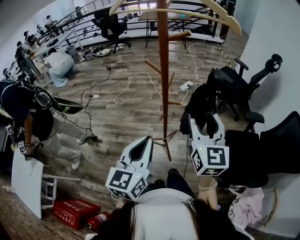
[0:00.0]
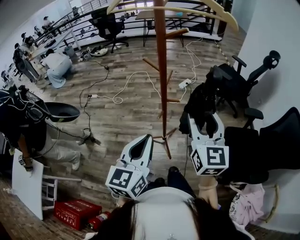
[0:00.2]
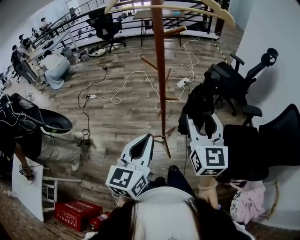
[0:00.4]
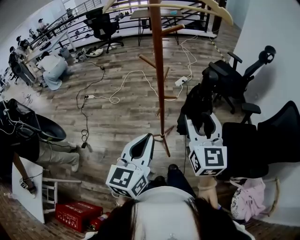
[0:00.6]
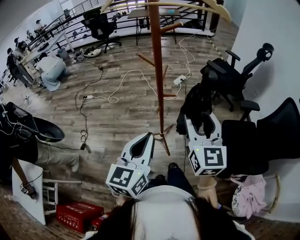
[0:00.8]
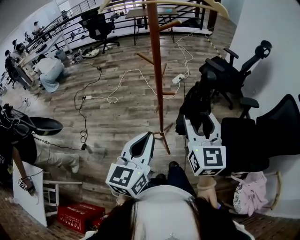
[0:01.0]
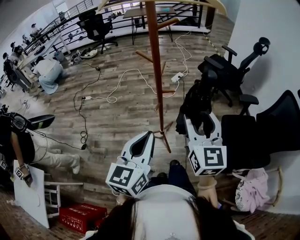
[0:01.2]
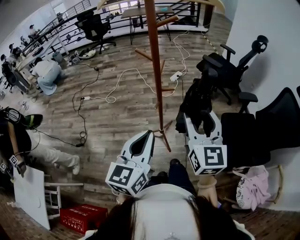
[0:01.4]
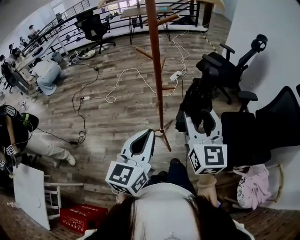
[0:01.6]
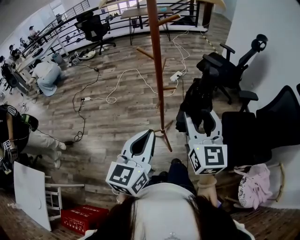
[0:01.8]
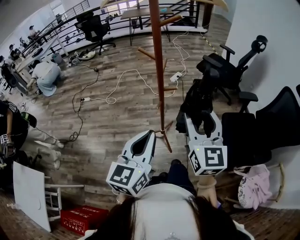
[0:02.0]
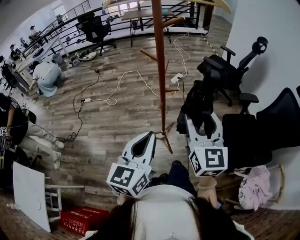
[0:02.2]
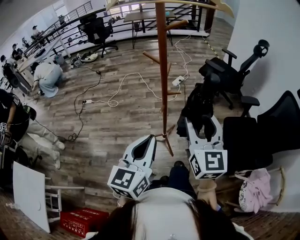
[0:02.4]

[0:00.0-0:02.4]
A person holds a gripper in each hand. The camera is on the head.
0:00.0 to 0:01.2: The right gripper goes roughly 5 cm backward.
0:01.2 to 0:02.4: The grippers move only a little.

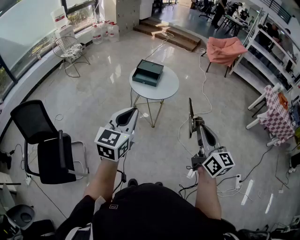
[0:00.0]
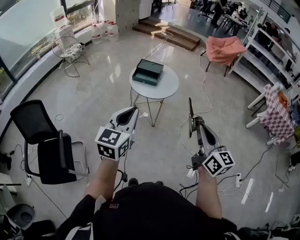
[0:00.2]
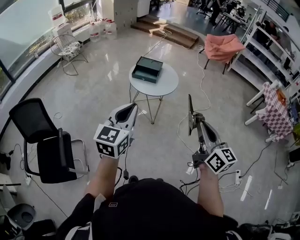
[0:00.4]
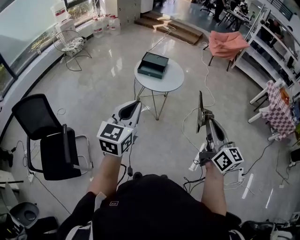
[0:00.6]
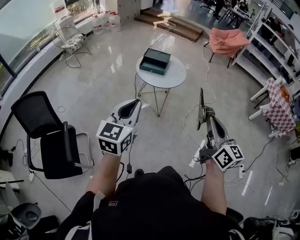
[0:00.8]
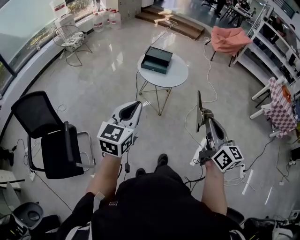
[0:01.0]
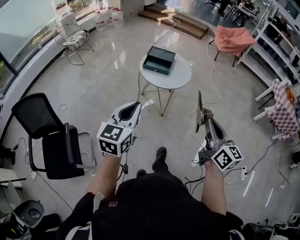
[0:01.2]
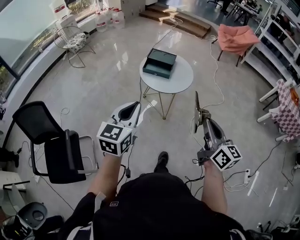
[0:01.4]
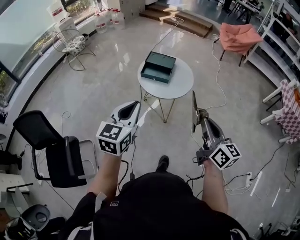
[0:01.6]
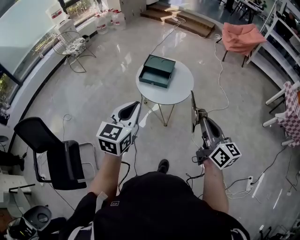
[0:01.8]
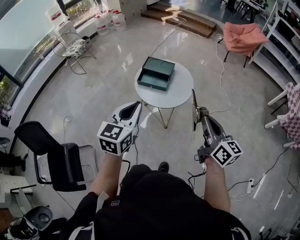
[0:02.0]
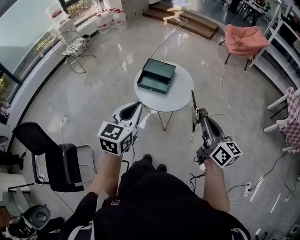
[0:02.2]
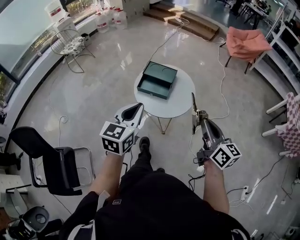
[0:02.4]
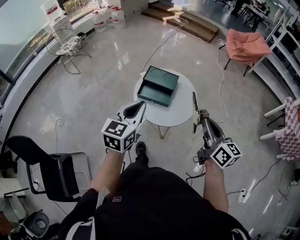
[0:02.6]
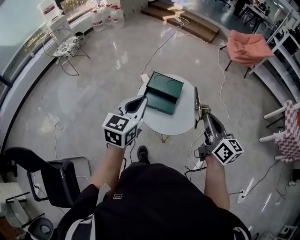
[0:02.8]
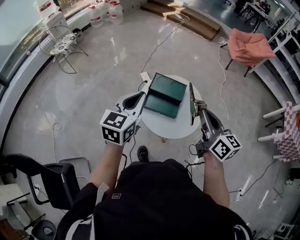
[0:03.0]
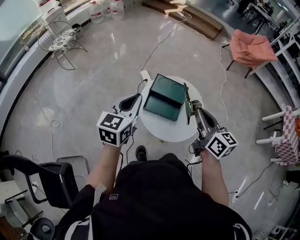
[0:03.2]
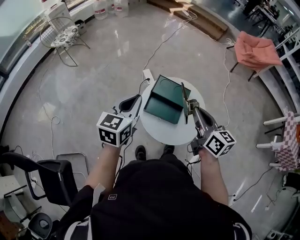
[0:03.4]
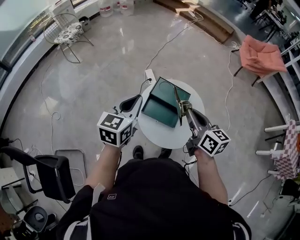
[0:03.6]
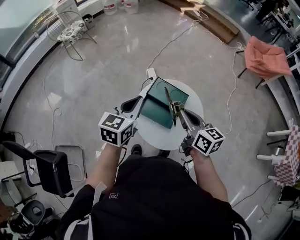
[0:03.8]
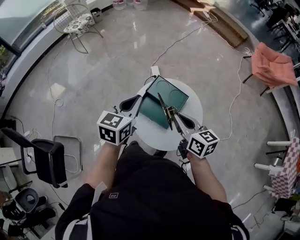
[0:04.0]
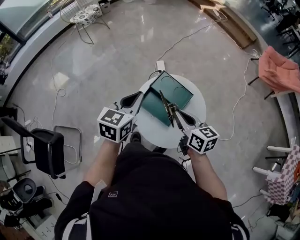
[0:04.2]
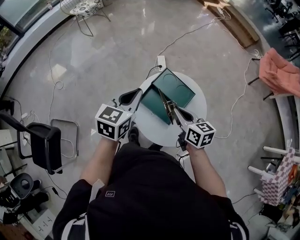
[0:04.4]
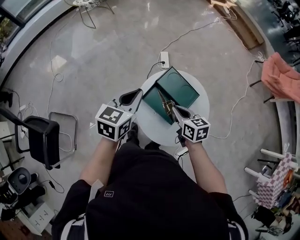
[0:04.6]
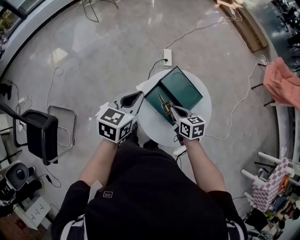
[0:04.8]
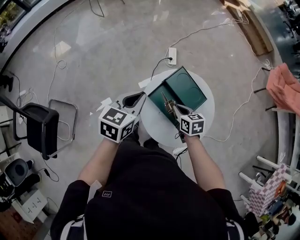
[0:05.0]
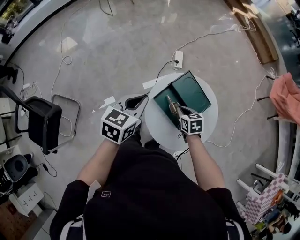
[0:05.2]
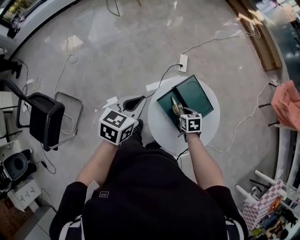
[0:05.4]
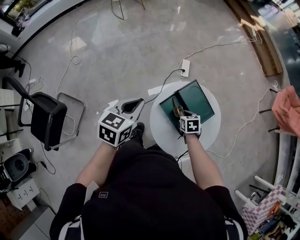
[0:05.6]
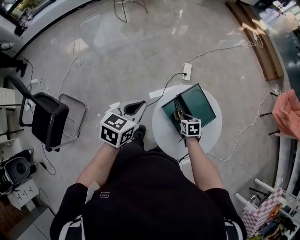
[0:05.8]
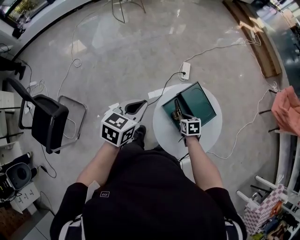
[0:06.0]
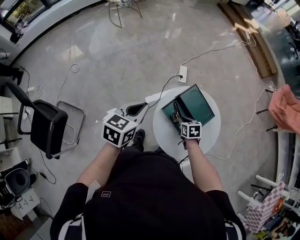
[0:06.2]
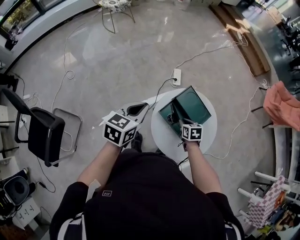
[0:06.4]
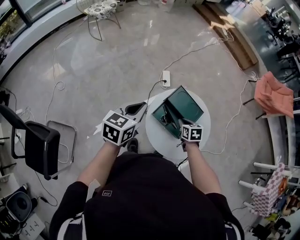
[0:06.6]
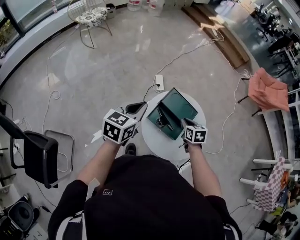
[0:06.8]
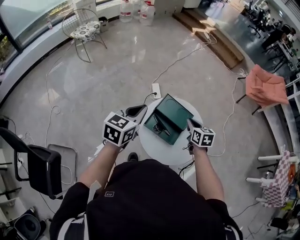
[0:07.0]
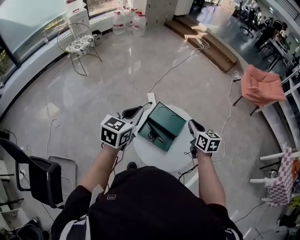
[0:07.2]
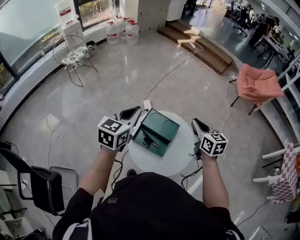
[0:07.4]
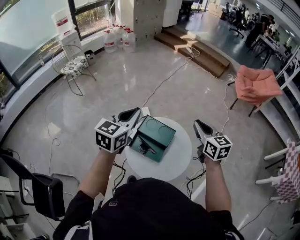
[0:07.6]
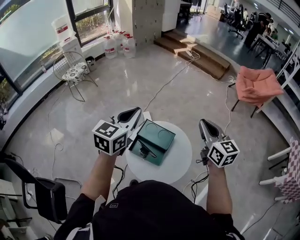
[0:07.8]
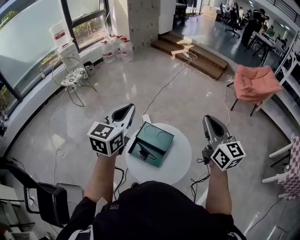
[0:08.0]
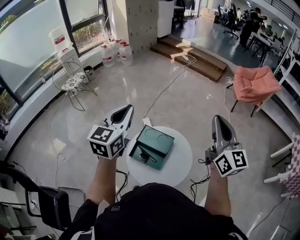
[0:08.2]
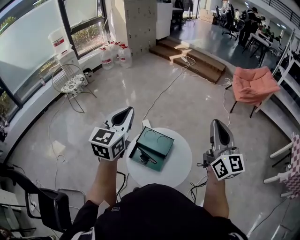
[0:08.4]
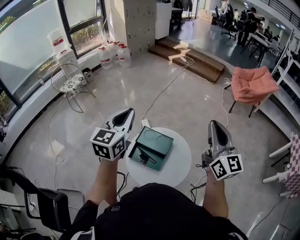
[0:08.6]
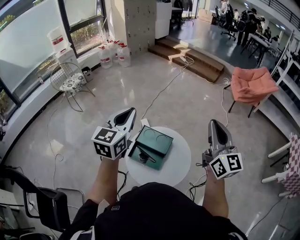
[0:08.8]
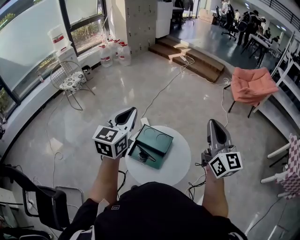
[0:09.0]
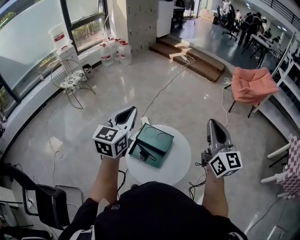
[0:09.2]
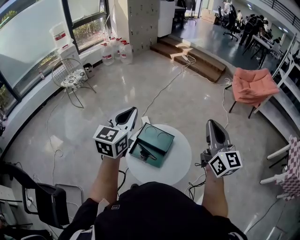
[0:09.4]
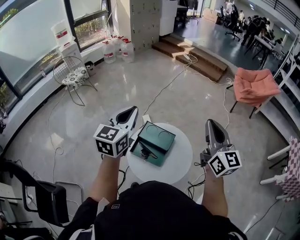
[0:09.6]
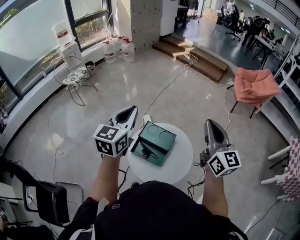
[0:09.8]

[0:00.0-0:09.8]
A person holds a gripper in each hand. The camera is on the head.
0:00.0 to 0:01.4: The left gripper shifts roughly 10 cm to the left, forward and downward. The right gripper is displaced forward, to the left and downward by roughly 10 cm.
0:01.4 to 0:02.8: Both grippers travel together forward, some 35 cm.
0:02.8 to 0:04.2: The left gripper travels forward and downward by roughly 15 cm, and turns by approximately 20 degrees, while the right gripper travels forward, downward and to the left by about 25 cm, and rotates approximately 40 degrees.
0:04.2 to 0:05.6: The right gripper goes roughly 25 cm downward, and points its fingers approximately 40 degrees further downward, while the left gripper moves to the left and downward, approximately 15 cm.
0:05.6 to 0:07.0: The right gripper shifts approximately 20 cm upward and to the right, and swivels roughly 30 degrees. Meanwhile the left gripper goes approximately 10 cm upward and to the right, and swivels about 20 degrees.
0:07.0 to 0:08.4: The right gripper travels upward and to the right by some 40 cm, and tilts its fingers about 50 degrees upward. Meanwhile the left gripper is displaced upward and to the right by some 20 cm, and turns by about 20 degrees.
0:08.4 to 0:09.8: The grippers stay close to where they were, moving slightly.

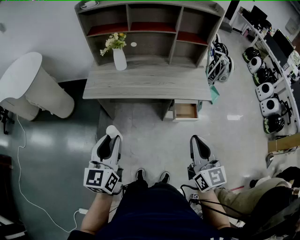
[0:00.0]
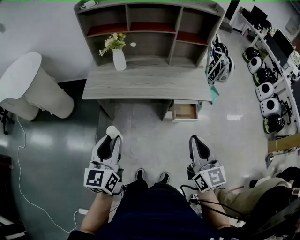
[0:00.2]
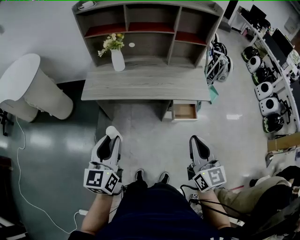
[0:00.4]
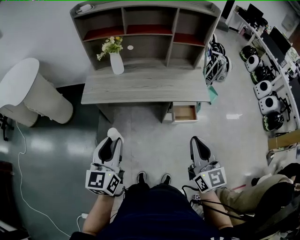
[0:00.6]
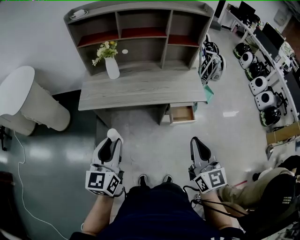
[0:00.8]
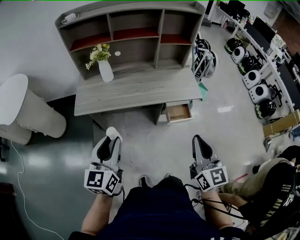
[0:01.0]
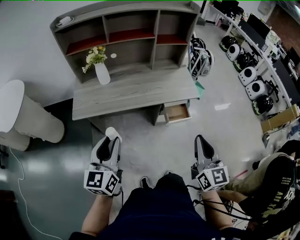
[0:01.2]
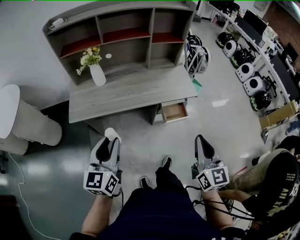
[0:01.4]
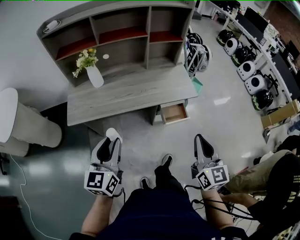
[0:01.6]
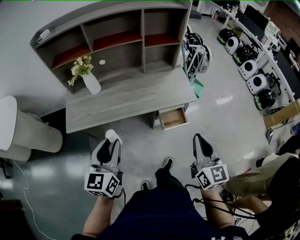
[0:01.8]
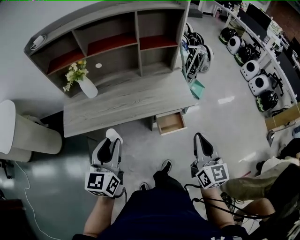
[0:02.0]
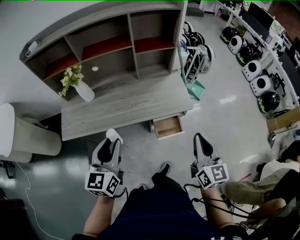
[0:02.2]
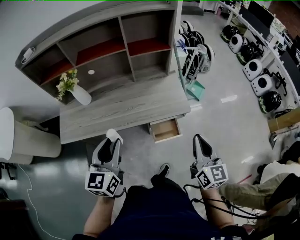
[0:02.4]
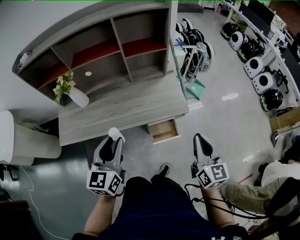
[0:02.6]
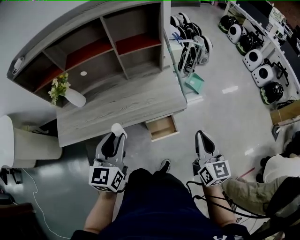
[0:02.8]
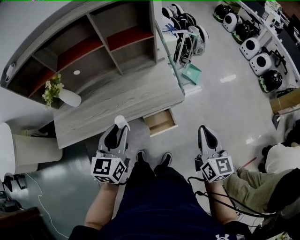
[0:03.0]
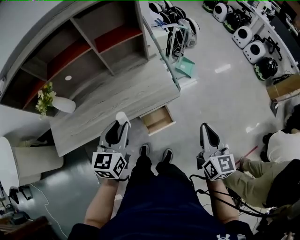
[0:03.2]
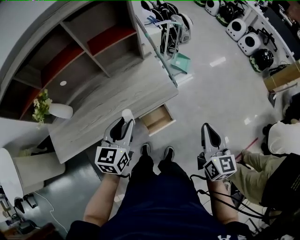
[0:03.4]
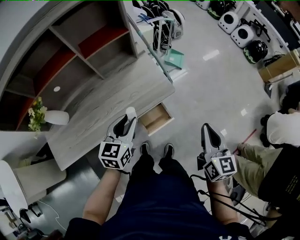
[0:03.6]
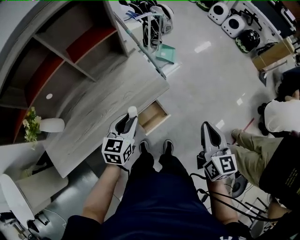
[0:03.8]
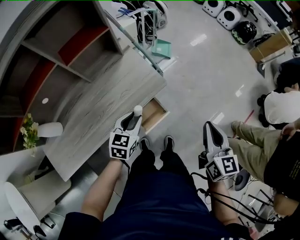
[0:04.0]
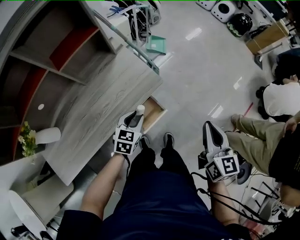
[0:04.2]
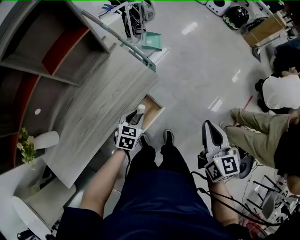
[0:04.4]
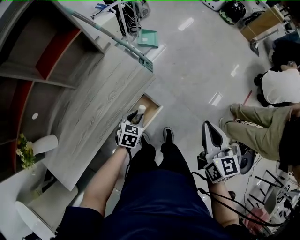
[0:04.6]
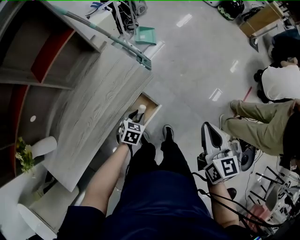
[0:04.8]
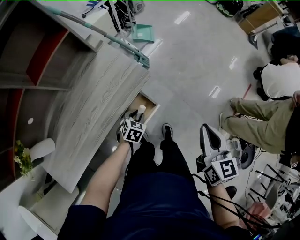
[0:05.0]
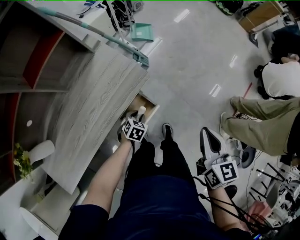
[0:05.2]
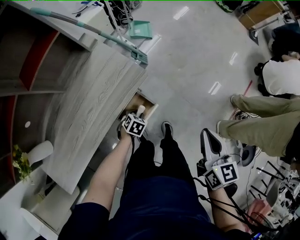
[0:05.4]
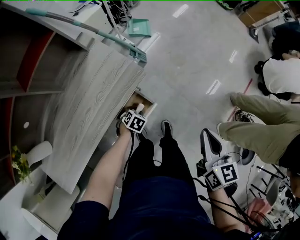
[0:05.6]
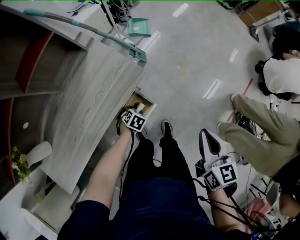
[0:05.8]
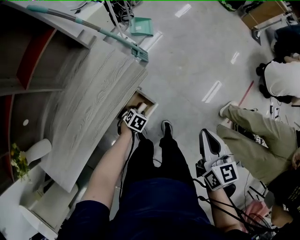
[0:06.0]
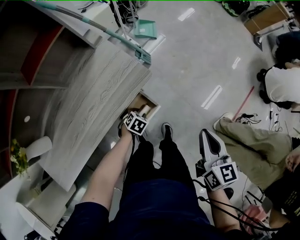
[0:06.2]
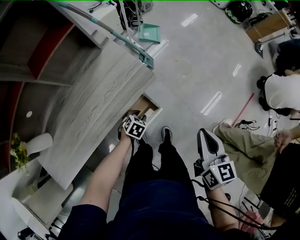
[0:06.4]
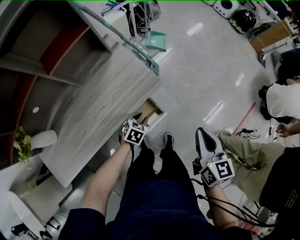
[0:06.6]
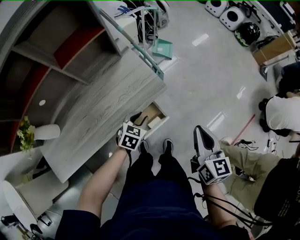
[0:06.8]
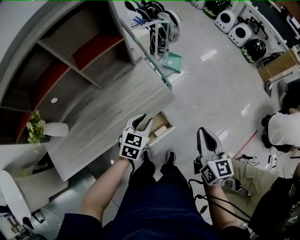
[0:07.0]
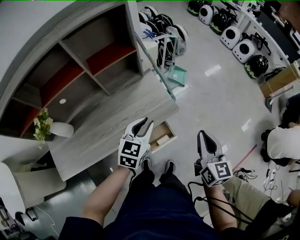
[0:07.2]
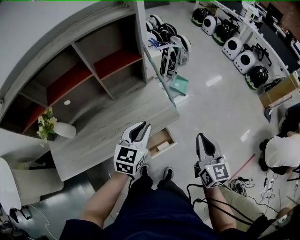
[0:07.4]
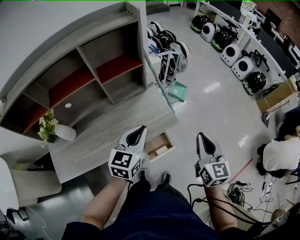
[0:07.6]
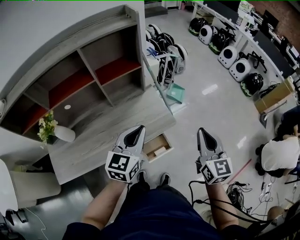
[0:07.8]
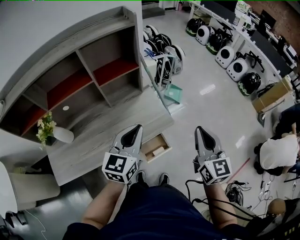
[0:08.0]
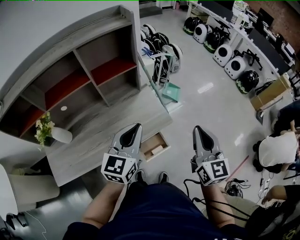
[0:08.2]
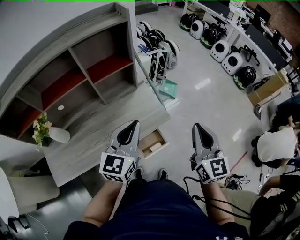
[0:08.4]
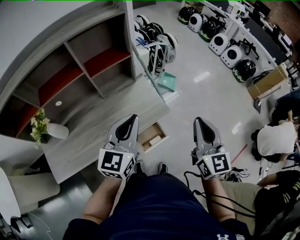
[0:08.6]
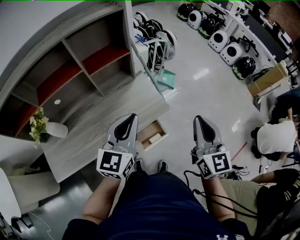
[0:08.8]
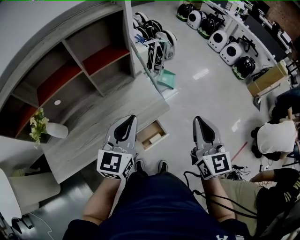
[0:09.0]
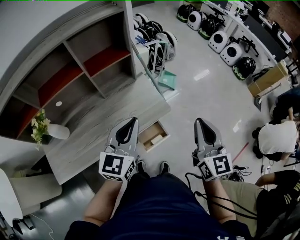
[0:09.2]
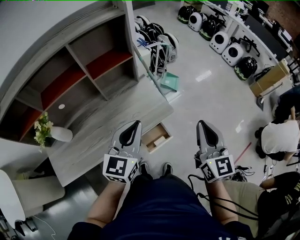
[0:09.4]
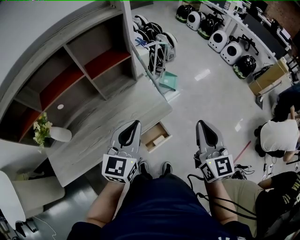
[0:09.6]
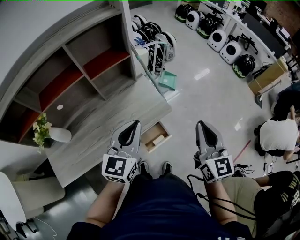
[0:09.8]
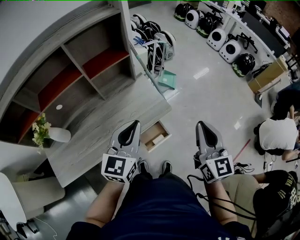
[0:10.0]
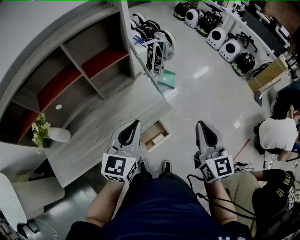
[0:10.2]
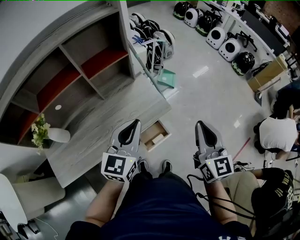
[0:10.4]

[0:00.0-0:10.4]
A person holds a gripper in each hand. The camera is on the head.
0:00.0 to 0:01.4: The left gripper shifts approximately 5 cm forward.
0:01.4 to 0:03.0: The left gripper heads forward and to the right, covering approximately 35 cm. Meanwhile the right gripper goes about 30 cm to the right, forward and downward.
0:03.0 to 0:04.4: The right gripper moves roughly 10 cm, and swivels some 30 degrees; the left gripper goes roughly 25 cm downward, and angles its fingers downward, by roughly 30 degrees.
0:04.4 to 0:06.0: The right gripper travels downward by approximately 5 cm; the left gripper goes some 20 cm downward, and swivels approximately 30 degrees.
0:06.0 to 0:07.4: The right gripper changes place by some 20 cm, and swivels about 30 degrees, while the left gripper heads upward, covering roughly 40 cm, and tips its fingers upward by approximately 50 degrees.
0:07.4 to 0:09.0: The grippers both shift upward by some 10 cm.
0:09.0 to 0:10.4: The grippers stay close to where they were, moving slightly.

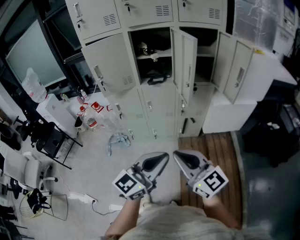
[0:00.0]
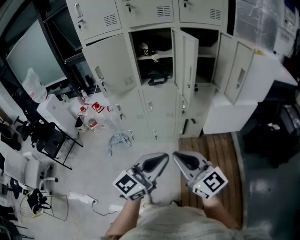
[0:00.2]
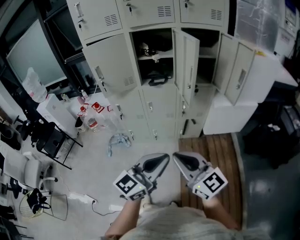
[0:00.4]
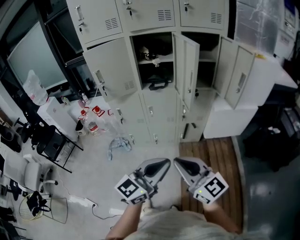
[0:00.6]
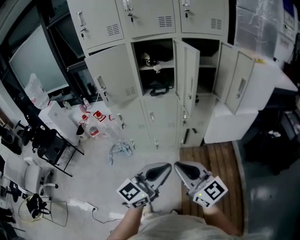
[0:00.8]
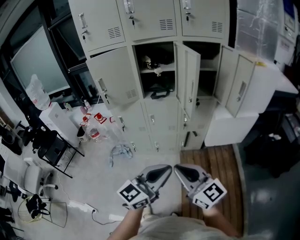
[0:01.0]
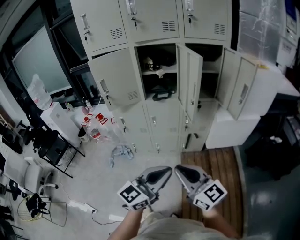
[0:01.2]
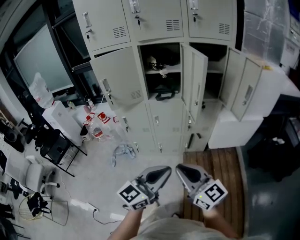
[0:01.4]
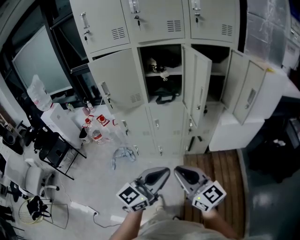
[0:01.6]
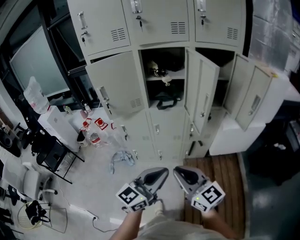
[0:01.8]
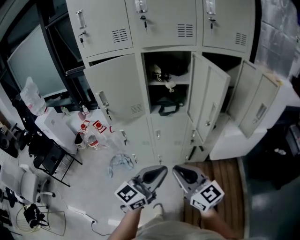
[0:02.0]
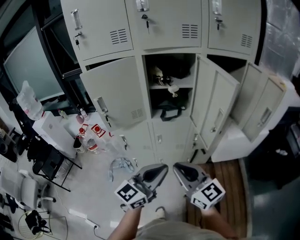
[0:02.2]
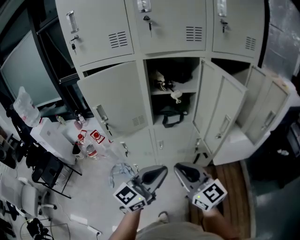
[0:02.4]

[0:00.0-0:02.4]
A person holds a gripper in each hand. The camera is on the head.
0:00.0 to 0:01.2: There are only small adjustments of the grippers.
0:01.2 to 0:02.4: The grippers both shift forward and to the left by approximately 25 cm.
